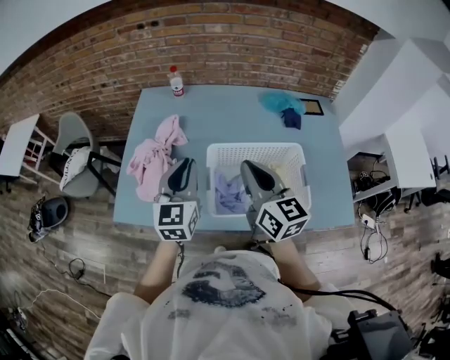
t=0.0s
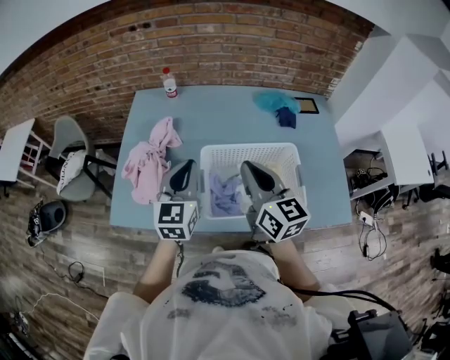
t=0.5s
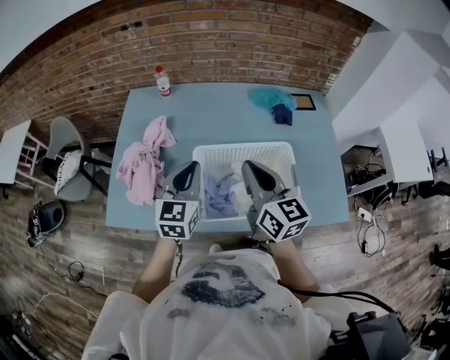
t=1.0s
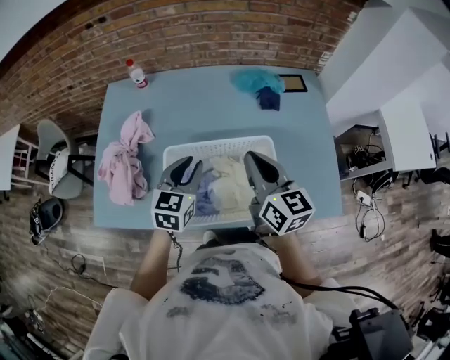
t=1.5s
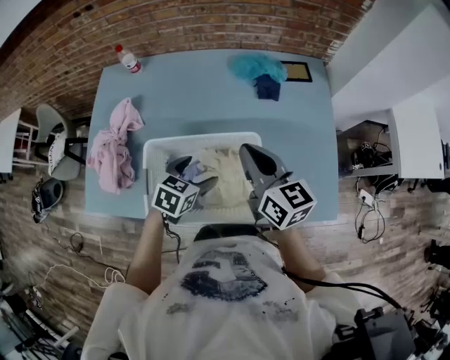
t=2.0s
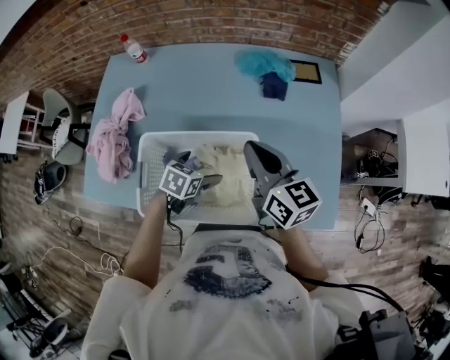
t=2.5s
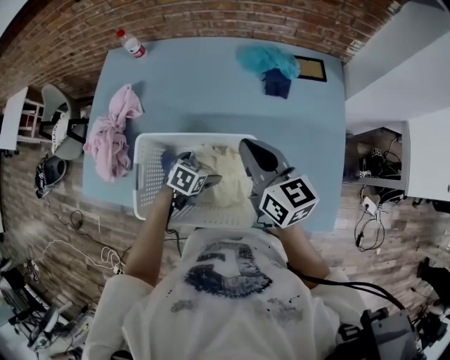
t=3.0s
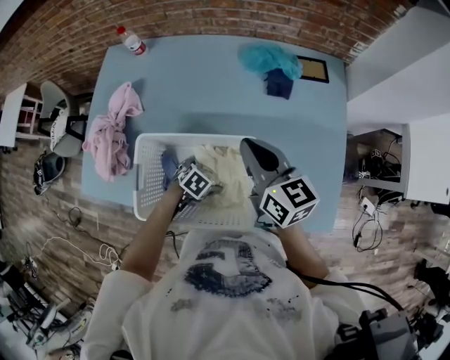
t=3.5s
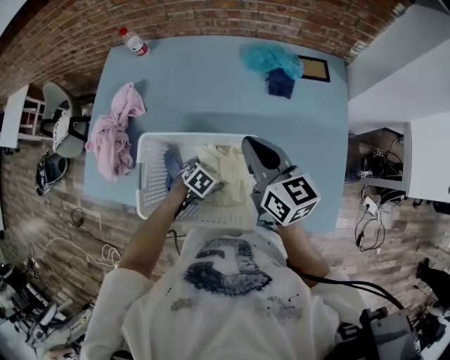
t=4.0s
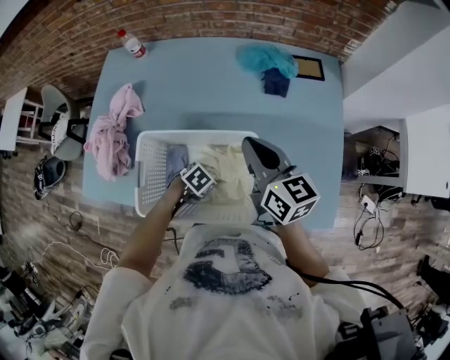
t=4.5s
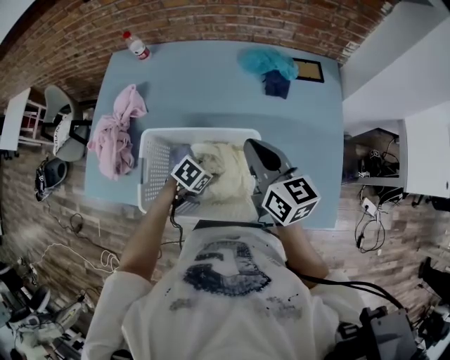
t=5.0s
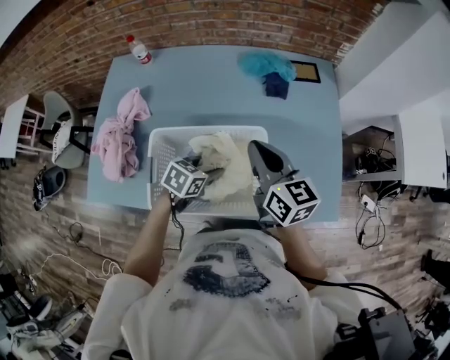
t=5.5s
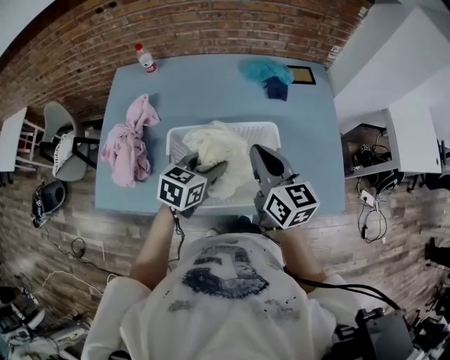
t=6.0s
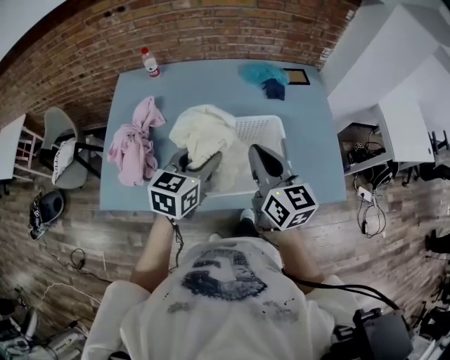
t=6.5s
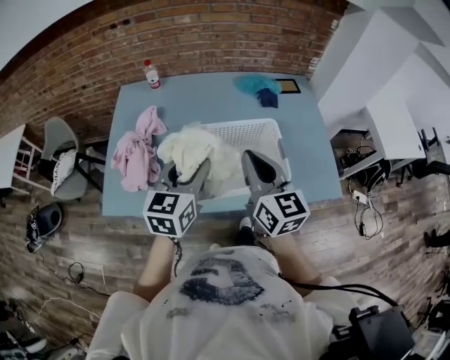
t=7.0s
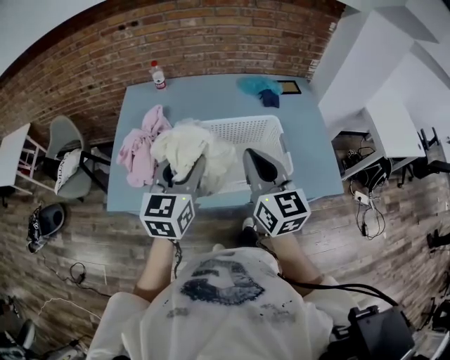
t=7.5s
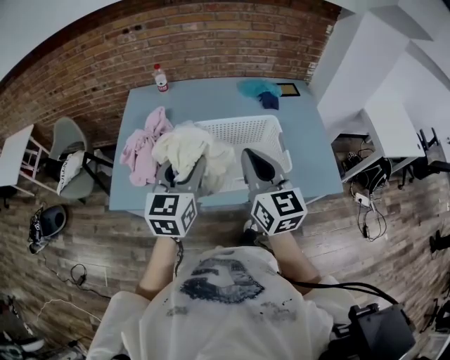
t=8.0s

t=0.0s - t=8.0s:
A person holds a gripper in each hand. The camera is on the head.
t=0.0s - t=2.0s: The right gripper is displaced to the right and forward by some 20 cm. The left gripper is displaced to the right and downward by about 30 cm, angles its fingers downward, by some 40 degrees, and opens.
t=2.0s - t=4.0s: The left gripper goes approximately 20 cm downward, and changes its angle by about 30 degrees. The right gripper moves some 5 cm.
t=4.0s - t=6.0s: The left gripper travels upward by approximately 25 cm, tilts its fingers roughly 40 degrees upward, and closes up. The right gripper goes about 10 cm backward.
t=6.0s - t=8.0s: The left gripper is displaced upward, backward and to the left by some 25 cm, and changes its angle by roughly 40 degrees. The right gripper travels backward, upward and to the left by approximately 20 cm.

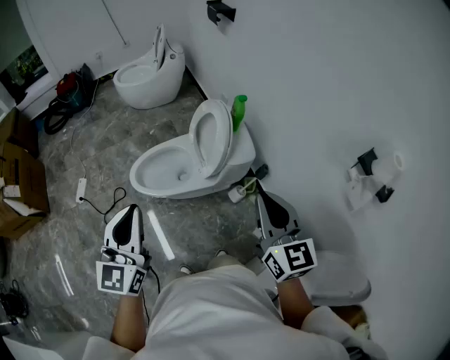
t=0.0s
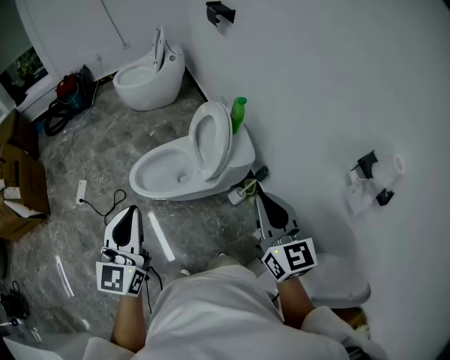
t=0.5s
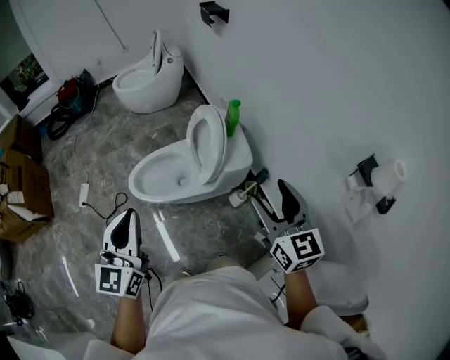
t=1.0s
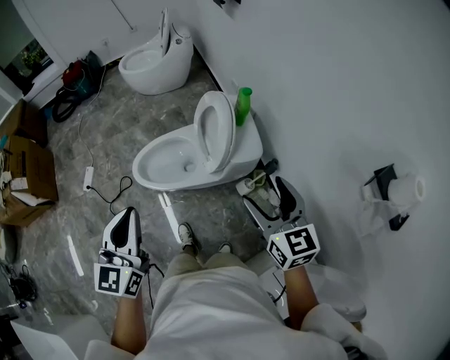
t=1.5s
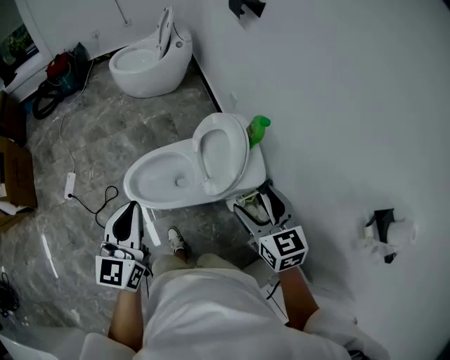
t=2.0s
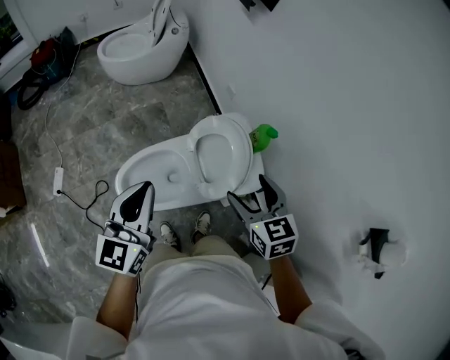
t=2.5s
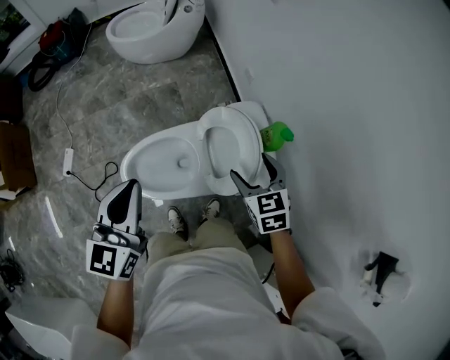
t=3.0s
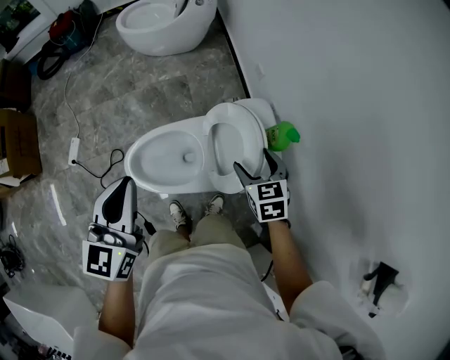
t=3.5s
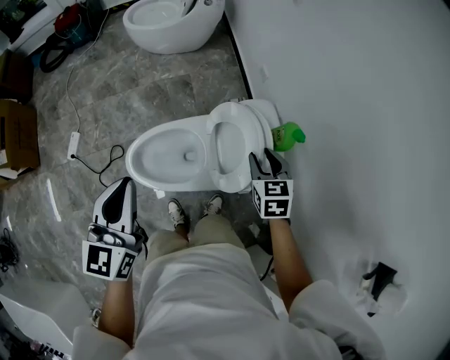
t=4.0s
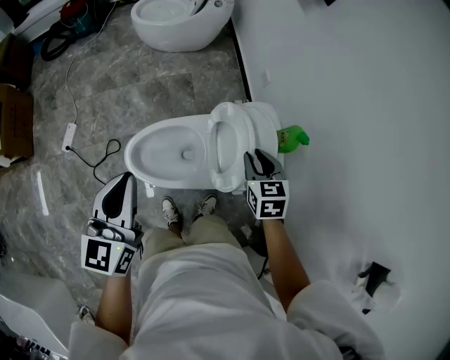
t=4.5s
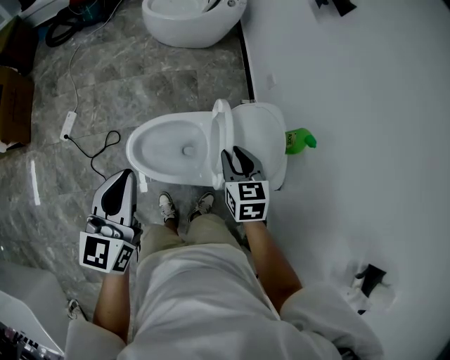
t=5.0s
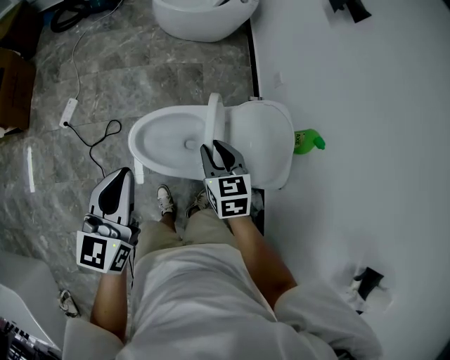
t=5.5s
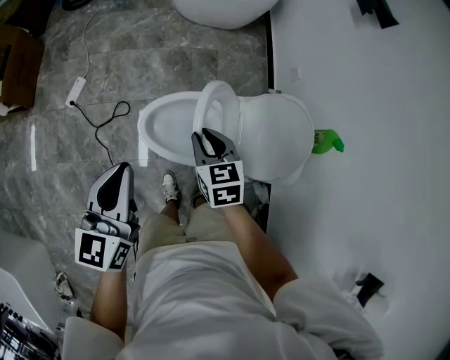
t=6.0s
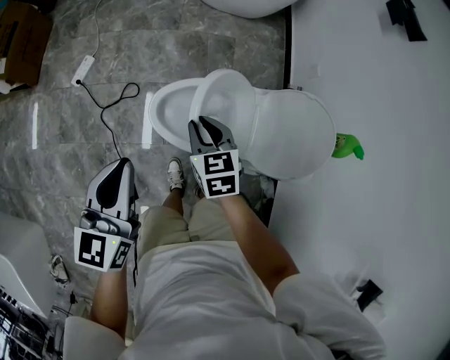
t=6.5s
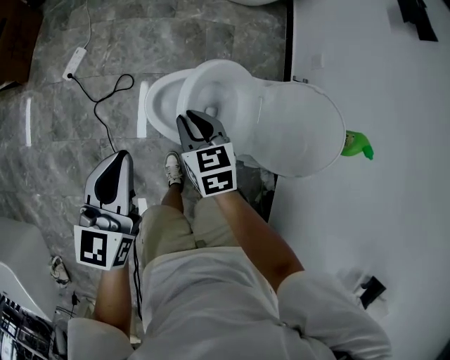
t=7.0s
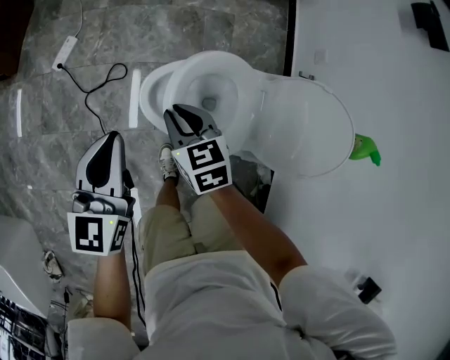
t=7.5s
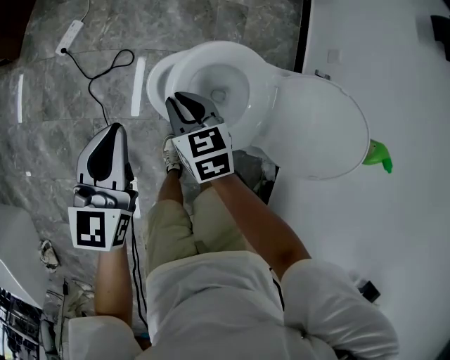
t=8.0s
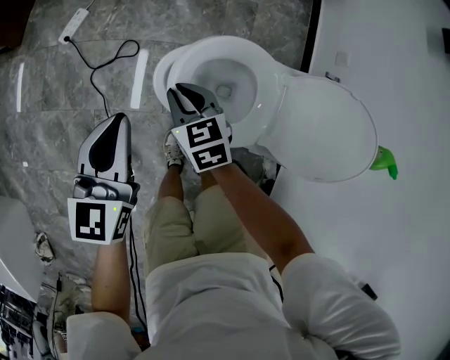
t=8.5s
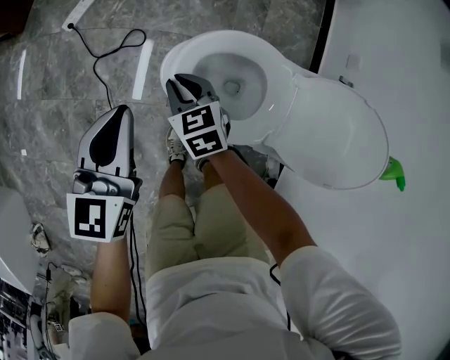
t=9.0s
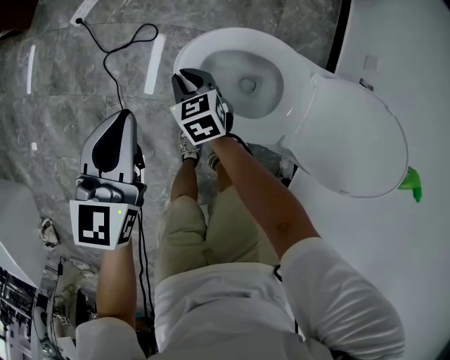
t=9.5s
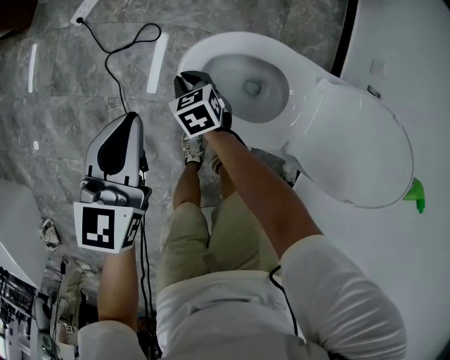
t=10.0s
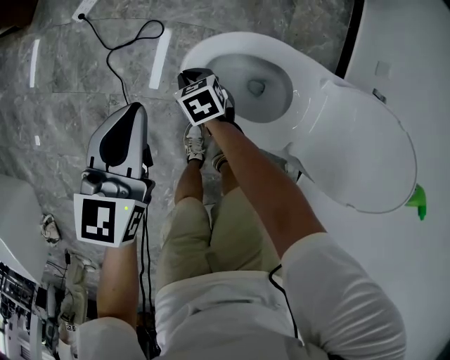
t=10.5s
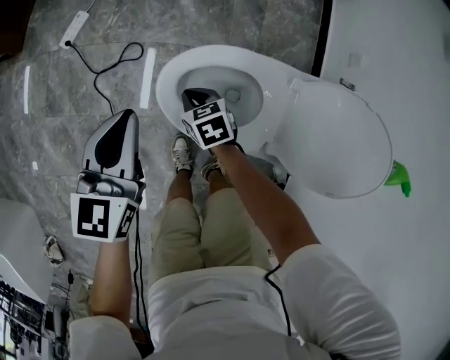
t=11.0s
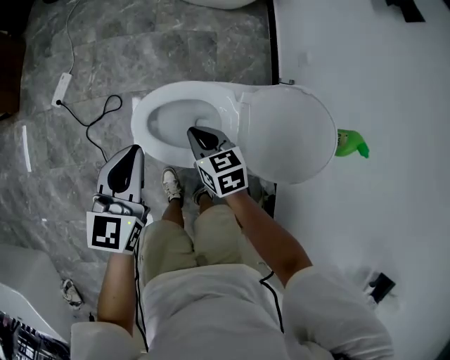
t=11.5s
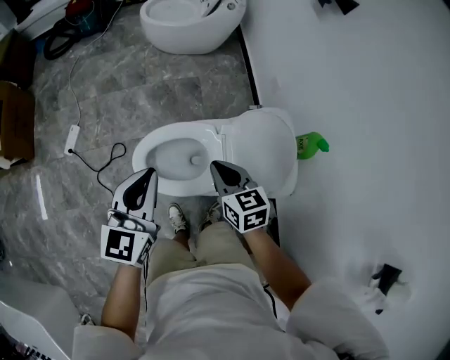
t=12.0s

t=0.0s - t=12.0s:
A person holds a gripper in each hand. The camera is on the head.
t=0.0s - t=2.0s: The left gripper travels forward by some 20 cm. The right gripper travels forward and downward by approximately 25 cm, rotates roughly 20 degrees, and opens up.
t=2.0s - t=4.0s: The left gripper heads forward, covering approximately 15 cm. Meanwhile the right gripper moves forward and downward, some 25 cm, and closes.
t=4.0s - t=6.0s: The left gripper shifts about 15 cm to the left, backward and downward; the right gripper goes some 30 cm to the left, and rotates roughly 20 degrees.
t=6.0s - t=8.0s: The left gripper is displaced downward and to the left by approximately 20 cm, while the right gripper goes roughly 20 cm to the left and downward.
t=8.0s - t=10.0s: The right gripper shifts approximately 20 cm downward, while the left gripper is displaced downward by some 10 cm.
t=10.0s - t=12.0s: The left gripper travels upward by roughly 25 cm, and changes its angle by about 30 degrees. Meanwhile the right gripper goes some 40 cm upward, and swivels approximately 40 degrees.

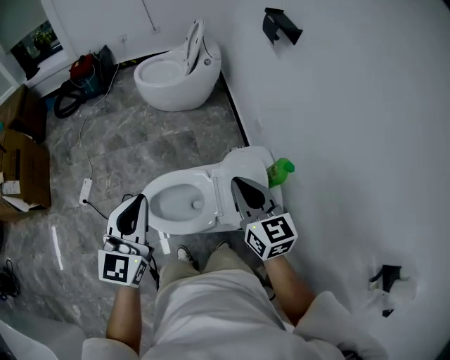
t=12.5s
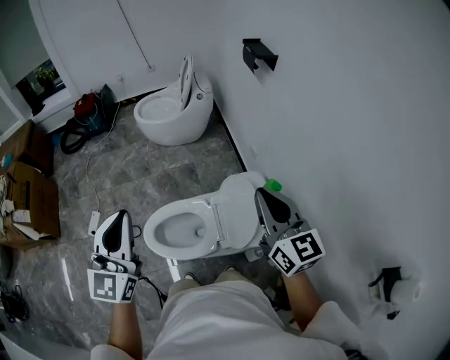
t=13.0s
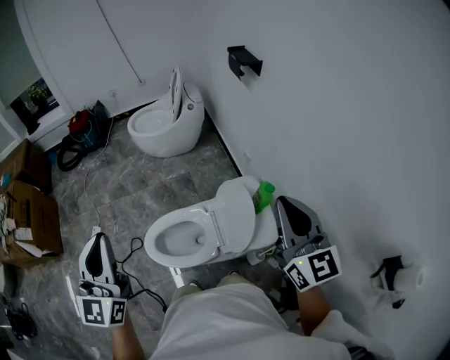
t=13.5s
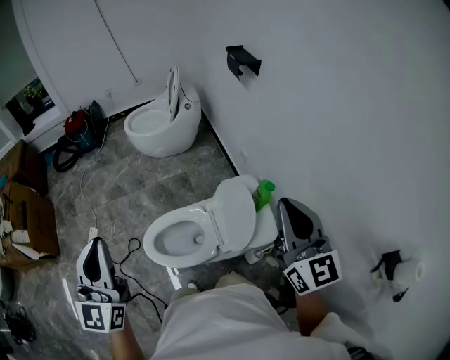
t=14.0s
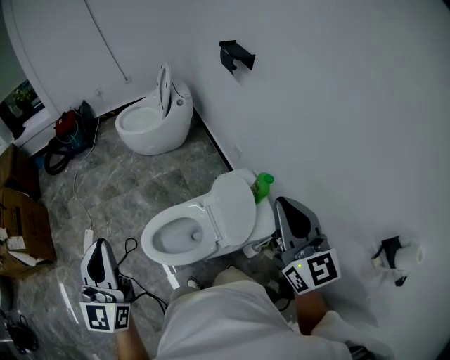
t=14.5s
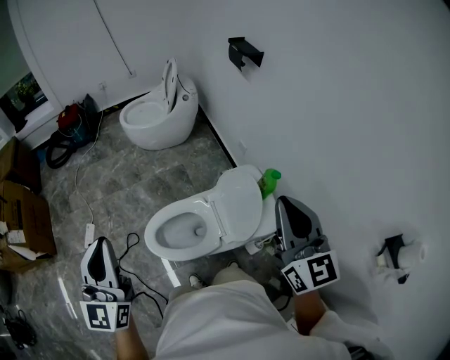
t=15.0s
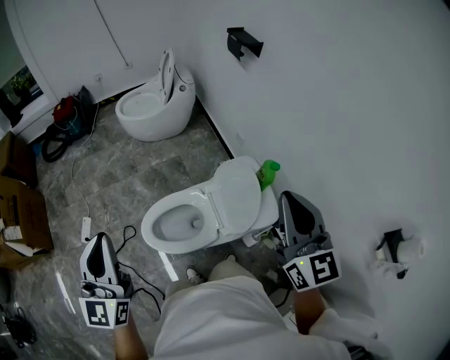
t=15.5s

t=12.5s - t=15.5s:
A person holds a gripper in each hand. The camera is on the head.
t=12.5s - t=14.0s: The right gripper is displaced upward, to the right and backward by approximately 20 cm, and swivels approximately 30 degrees. Meanwhile the left gripper travels upward, to the left and backward by roughly 15 cm.
t=14.0s - t=15.5s: The right gripper shifts by some 5 cm, while the left gripper ends up approximately 5 cm from where it was.

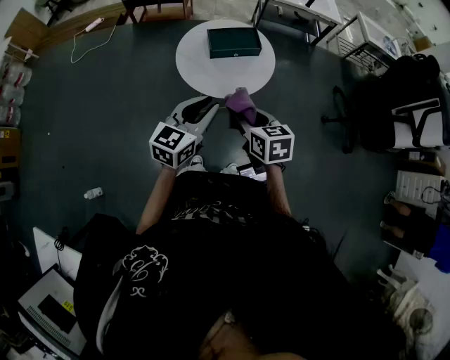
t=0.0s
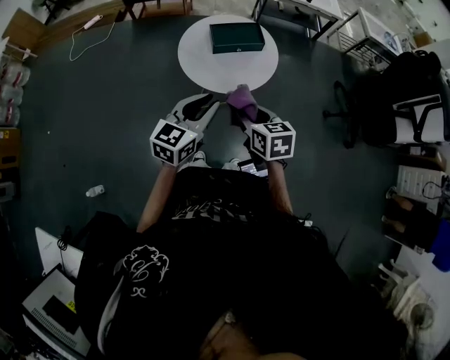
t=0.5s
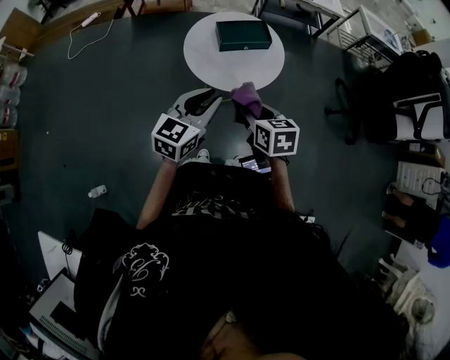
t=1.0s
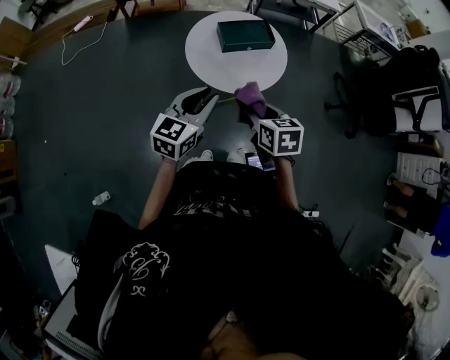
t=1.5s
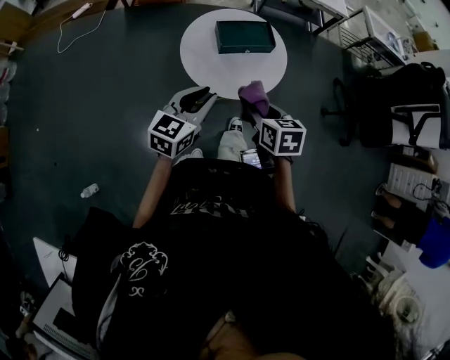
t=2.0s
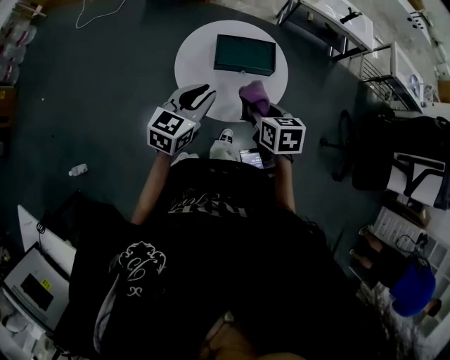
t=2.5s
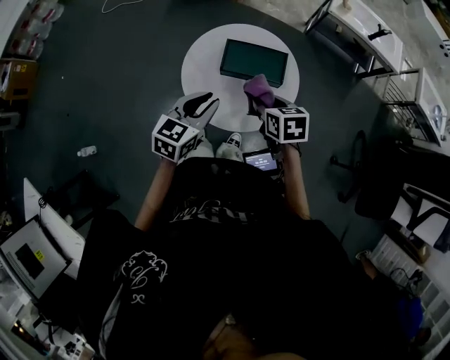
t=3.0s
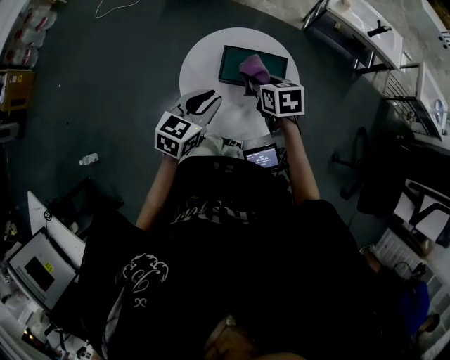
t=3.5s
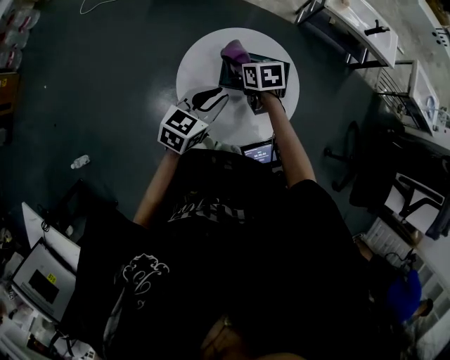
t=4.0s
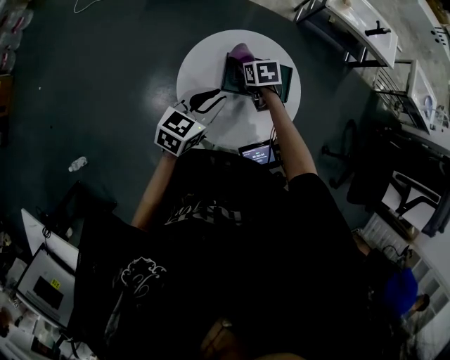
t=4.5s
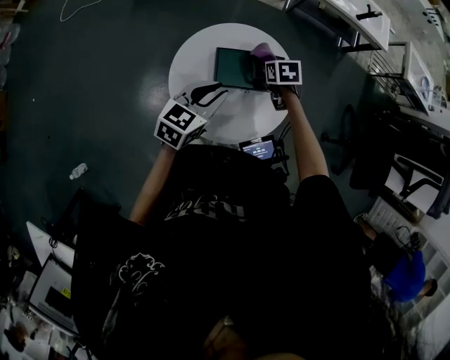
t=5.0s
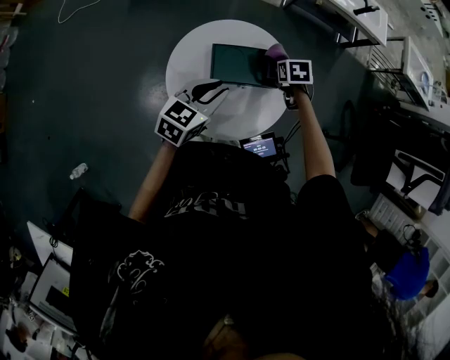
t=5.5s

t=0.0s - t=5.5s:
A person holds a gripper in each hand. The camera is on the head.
t=0.0s - t=2.0s: The right gripper is displaced forward by approximately 10 cm, while the left gripper heads forward and to the left, covering about 10 cm.
t=2.0s - t=3.5s: The left gripper goes about 20 cm forward and to the right. Meanwhile the right gripper shifts approximately 30 cm forward, and swivels approximately 30 degrees.
t=3.5s - t=5.5s: The left gripper is displaced forward by about 5 cm. The right gripper travels forward, to the right and downward by about 20 cm, and turns by some 30 degrees.
